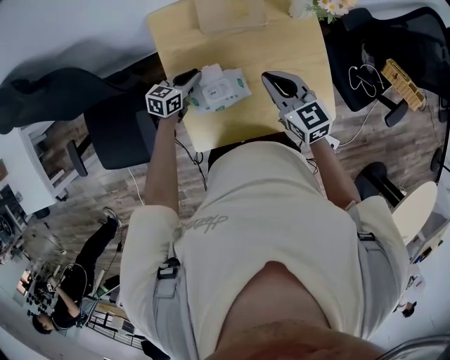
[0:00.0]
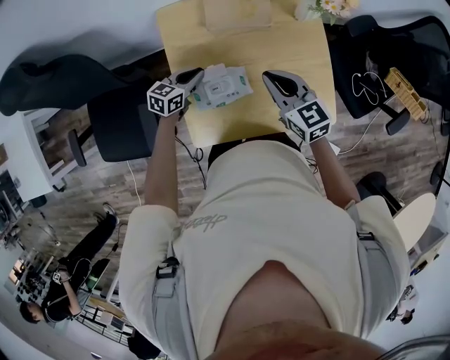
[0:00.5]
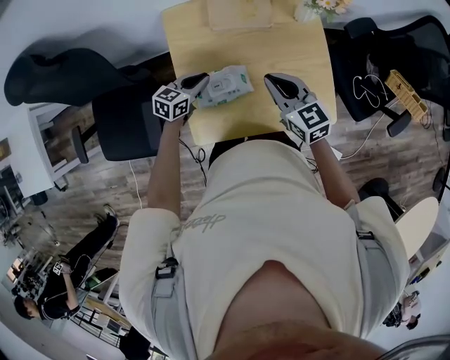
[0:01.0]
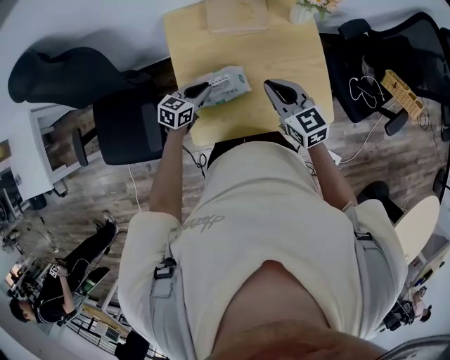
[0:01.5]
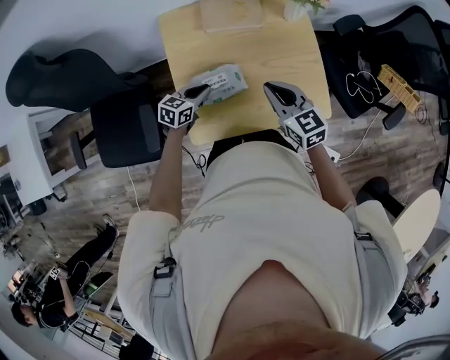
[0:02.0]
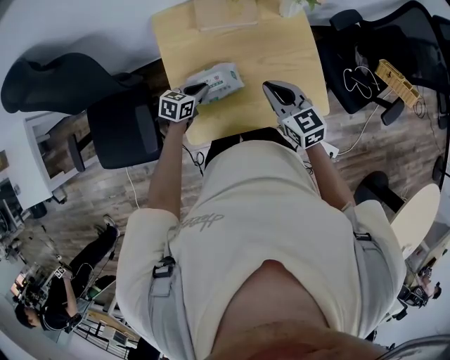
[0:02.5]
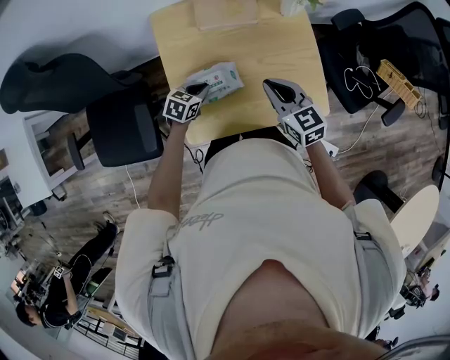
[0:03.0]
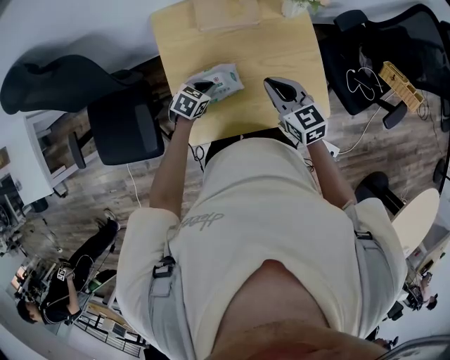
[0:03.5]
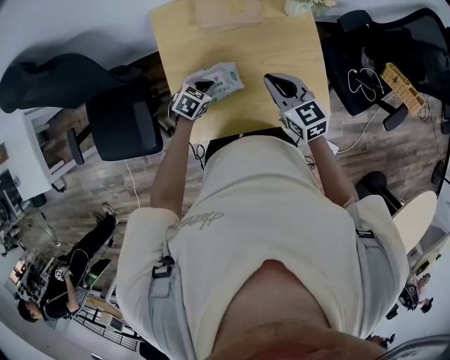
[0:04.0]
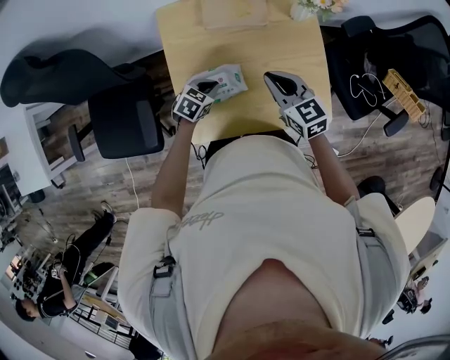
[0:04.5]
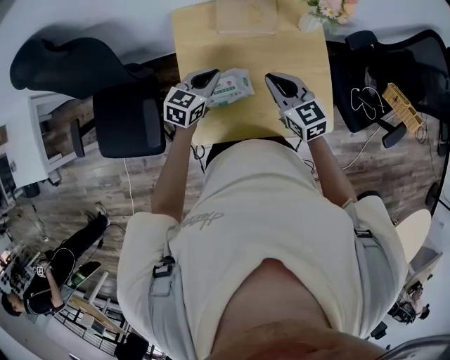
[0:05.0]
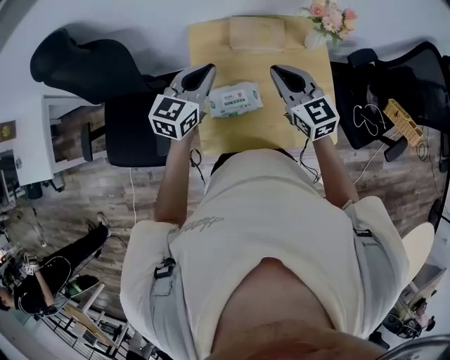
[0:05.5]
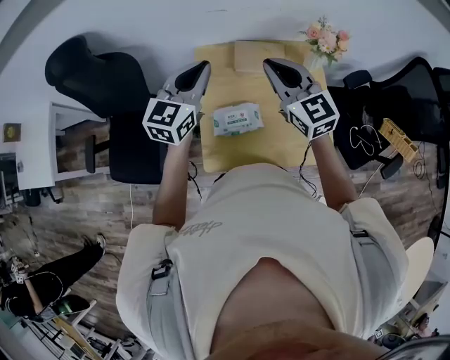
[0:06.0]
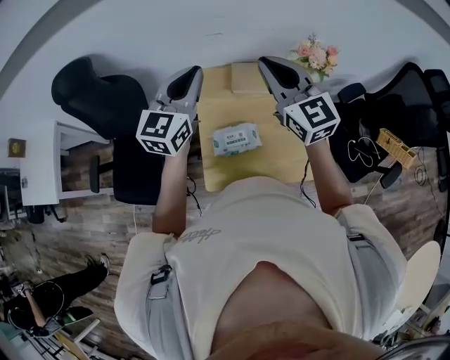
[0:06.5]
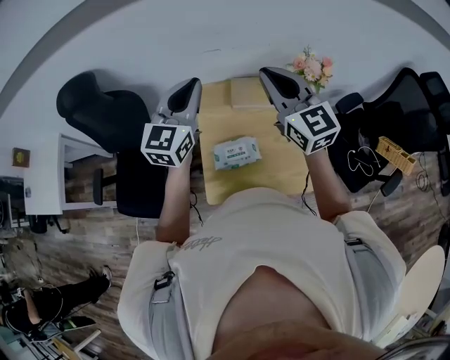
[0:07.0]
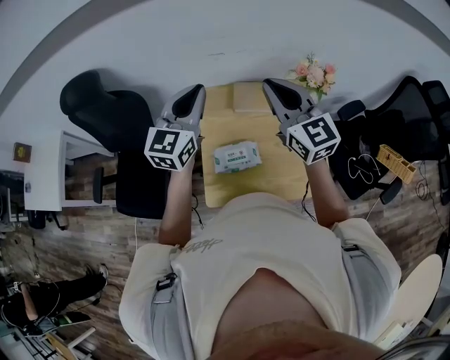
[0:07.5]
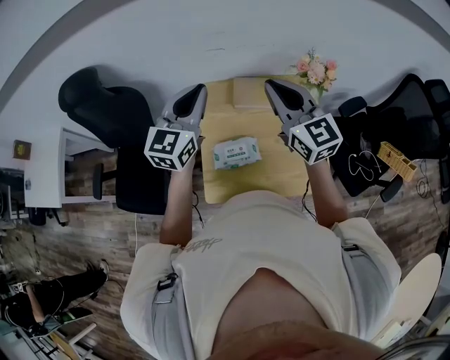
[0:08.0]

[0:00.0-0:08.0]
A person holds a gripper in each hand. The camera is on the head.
0:00.0 to 0:02.0: Both grippers travel together backward, approximately 10 cm.
0:02.0 to 0:04.0: The left gripper ends up about 5 cm from where it was, and rotates about 30 degrees. Meanwhile the right gripper moves some 5 cm.
0:04.0 to 0:06.0: The left gripper goes approximately 40 cm upward, and tilts its fingers about 50 degrees upward; the right gripper heads upward and to the left, covering about 25 cm, and rotates approximately 30 degrees.
0:06.0 to 0:08.0: Both grippers move upward, some 5 cm.

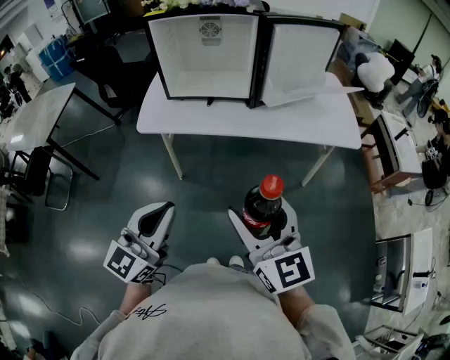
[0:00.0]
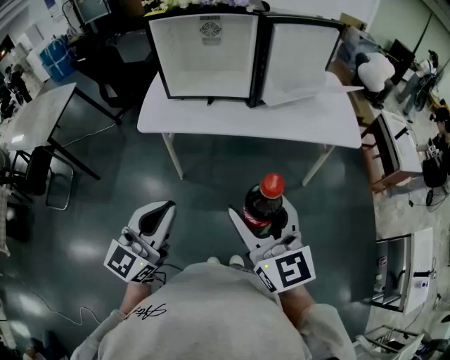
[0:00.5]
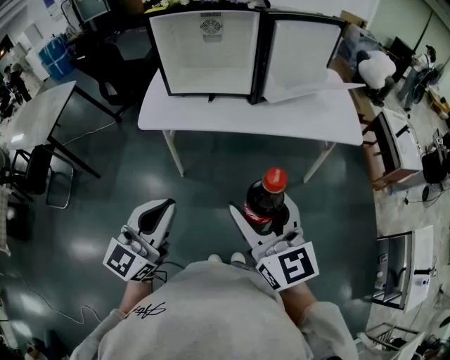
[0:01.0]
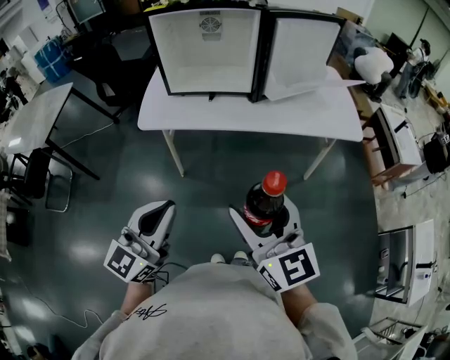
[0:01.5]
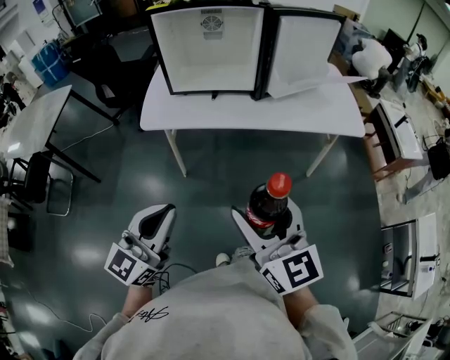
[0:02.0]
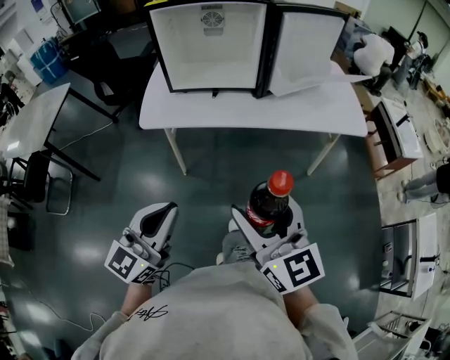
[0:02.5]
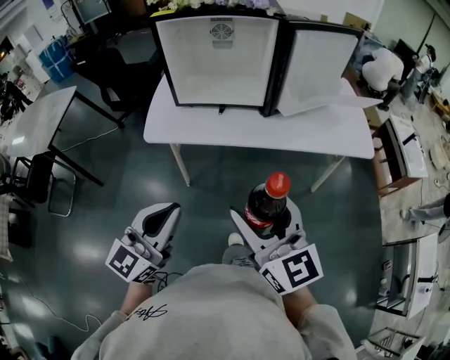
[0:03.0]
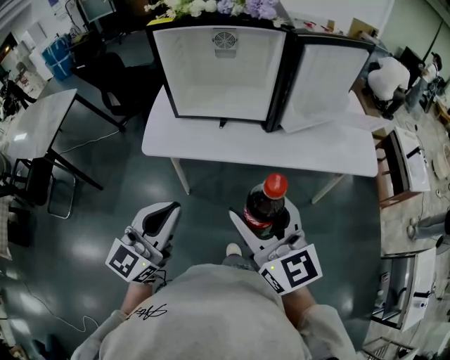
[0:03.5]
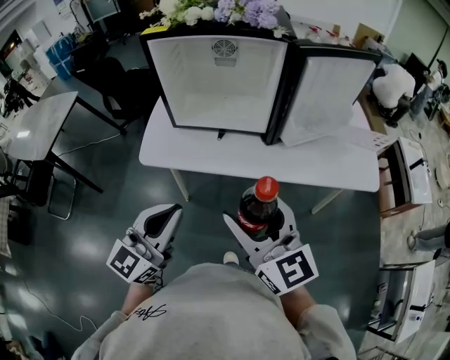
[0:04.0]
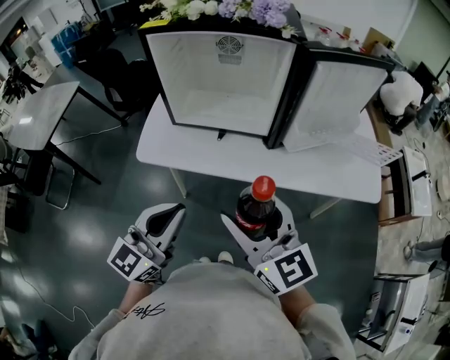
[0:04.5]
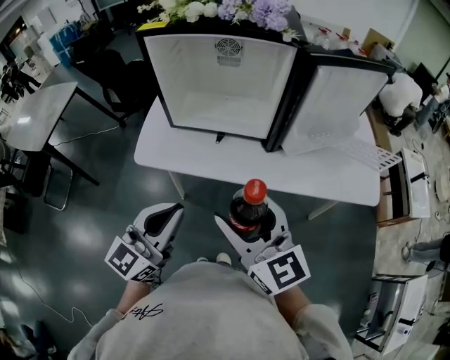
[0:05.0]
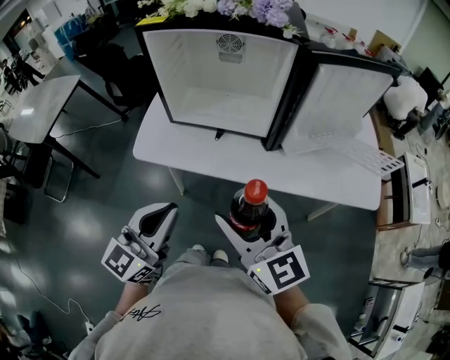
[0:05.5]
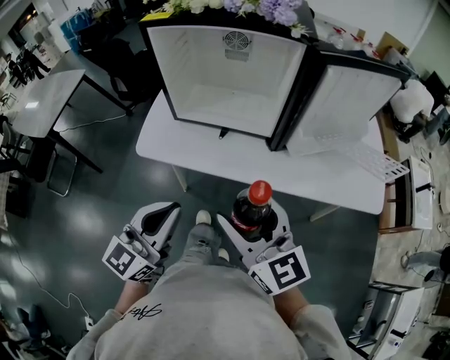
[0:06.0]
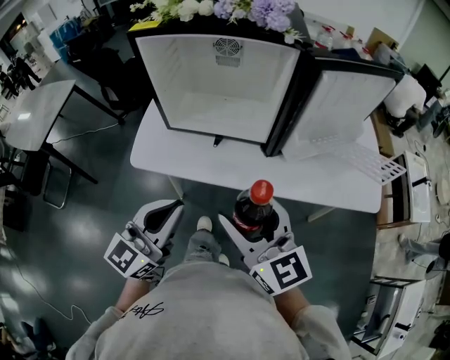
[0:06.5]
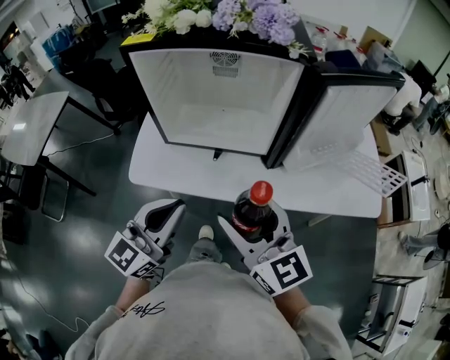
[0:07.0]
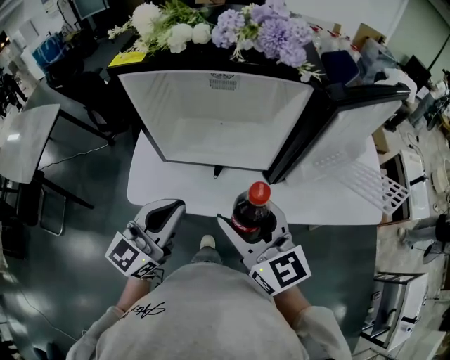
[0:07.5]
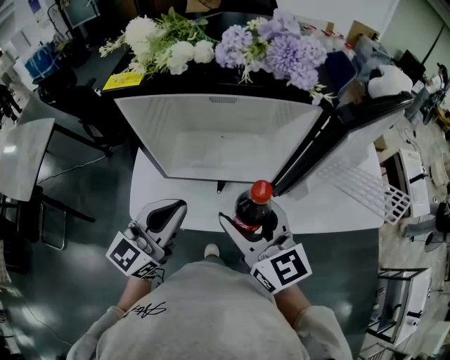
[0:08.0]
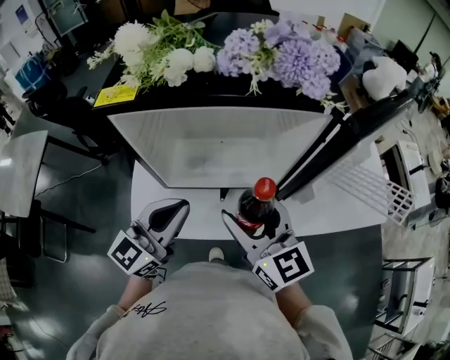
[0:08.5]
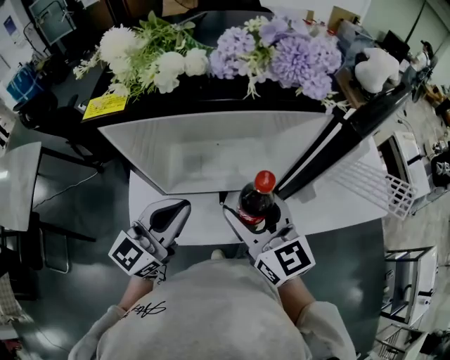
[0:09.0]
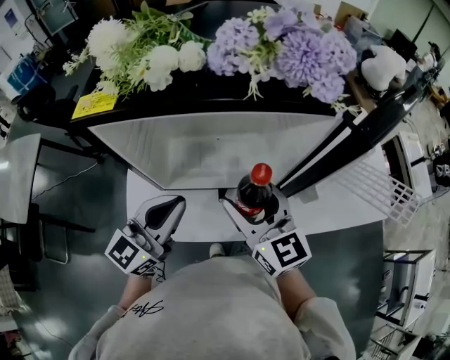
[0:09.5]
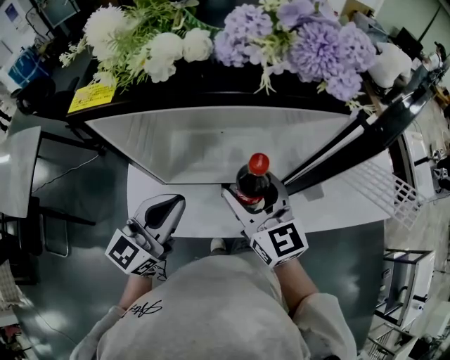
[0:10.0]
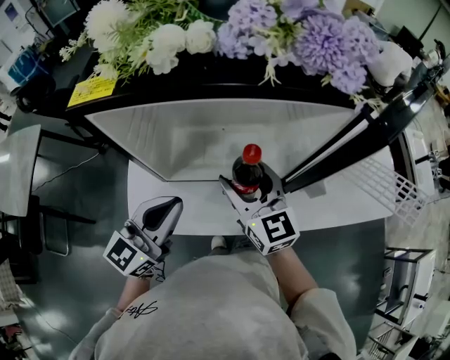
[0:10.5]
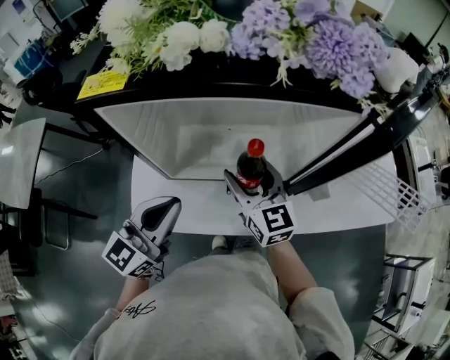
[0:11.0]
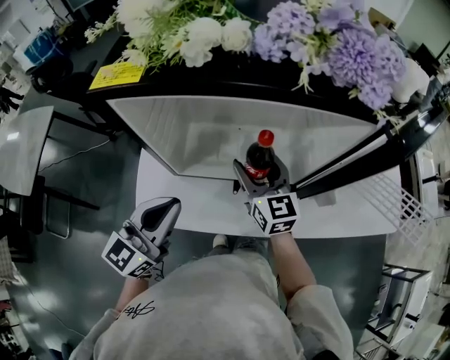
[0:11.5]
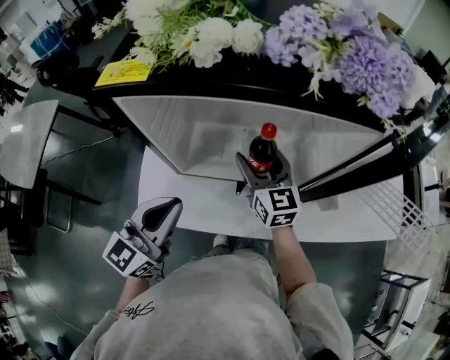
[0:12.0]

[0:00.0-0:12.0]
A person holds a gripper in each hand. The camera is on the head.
0:00.0 to 0:02.0: The left gripper shifts by some 5 cm.
0:02.0 to 0:04.0: The grippers both shift forward by approximately 20 cm.
0:04.0 to 0:06.0: The right gripper ends up some 5 cm from where it was.
0:06.0 to 0:08.0: Both grippers travel together forward, roughly 20 cm.
0:08.0 to 0:10.0: The right gripper goes roughly 10 cm forward and downward; the left gripper moves forward, approximately 5 cm.
0:10.0 to 0:12.0: The right gripper shifts approximately 10 cm forward and downward.

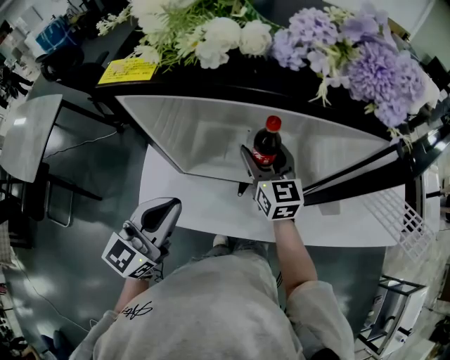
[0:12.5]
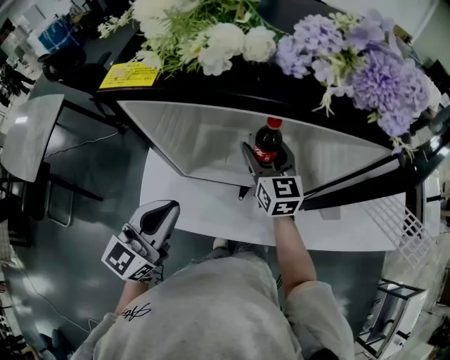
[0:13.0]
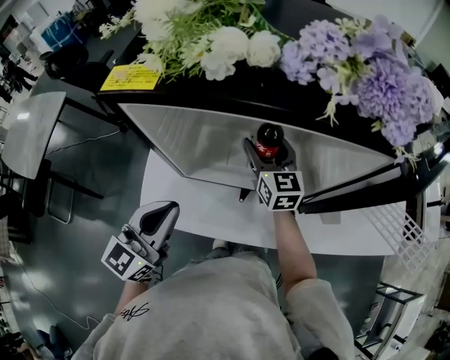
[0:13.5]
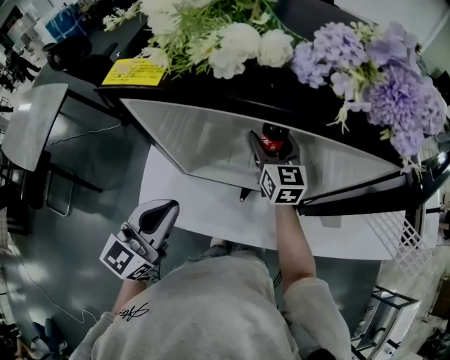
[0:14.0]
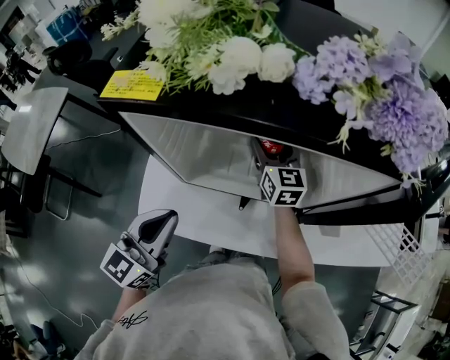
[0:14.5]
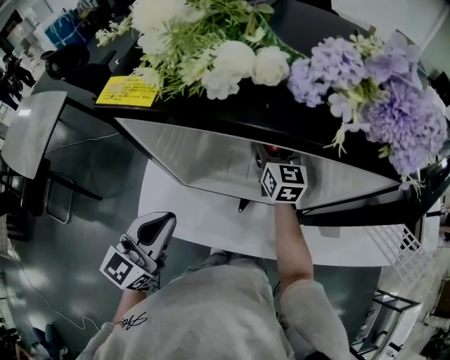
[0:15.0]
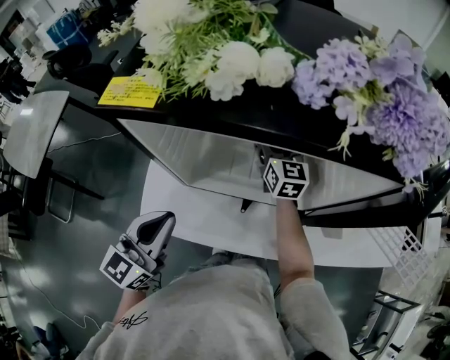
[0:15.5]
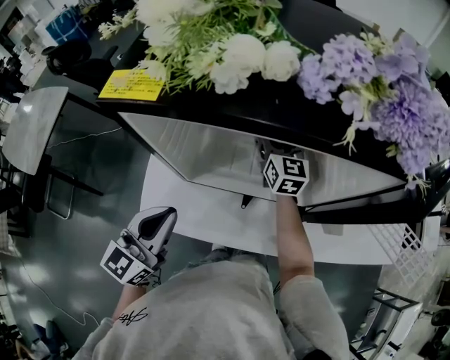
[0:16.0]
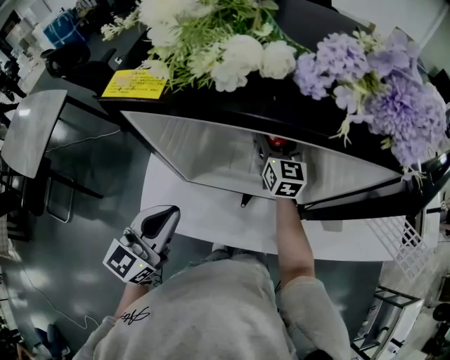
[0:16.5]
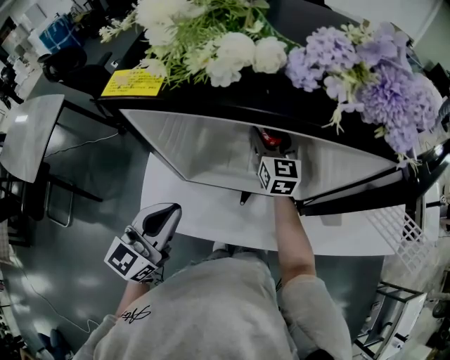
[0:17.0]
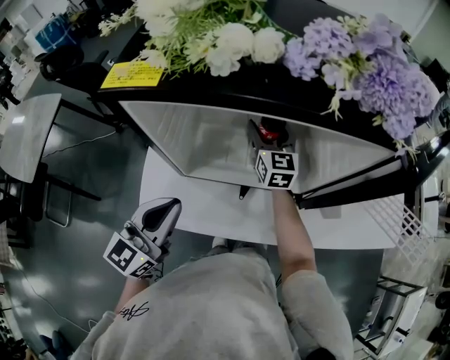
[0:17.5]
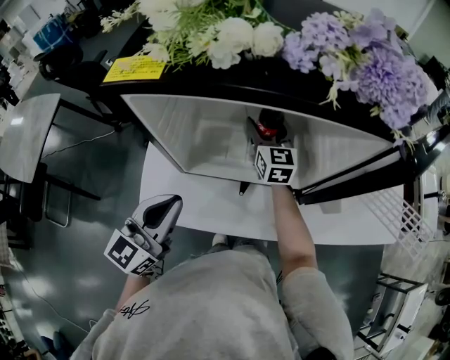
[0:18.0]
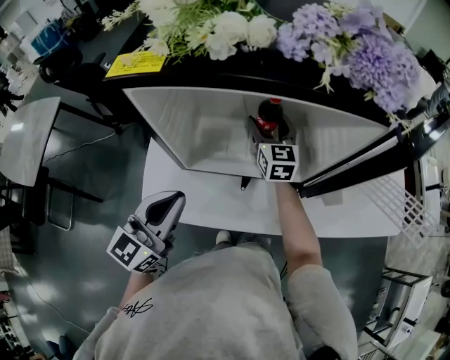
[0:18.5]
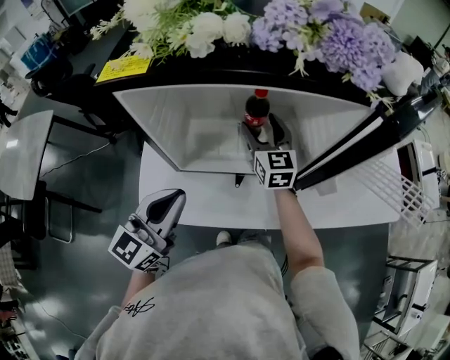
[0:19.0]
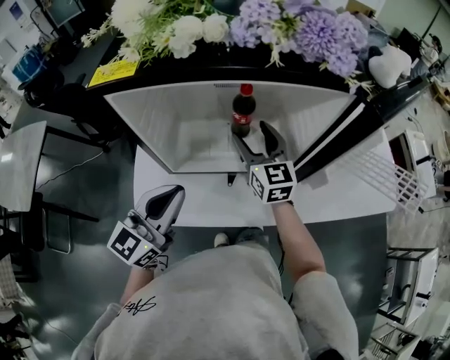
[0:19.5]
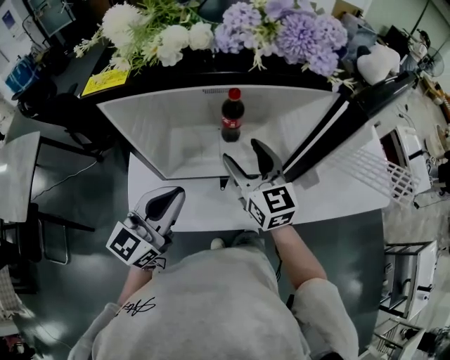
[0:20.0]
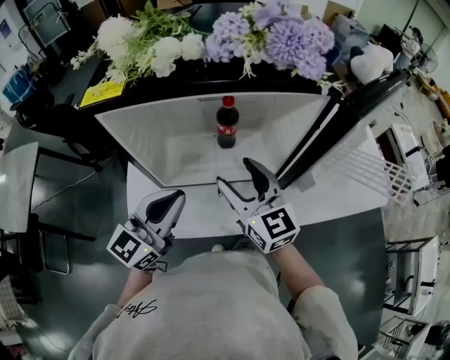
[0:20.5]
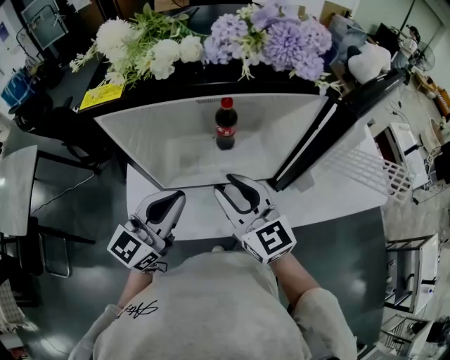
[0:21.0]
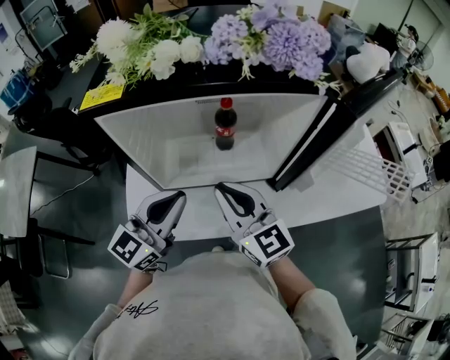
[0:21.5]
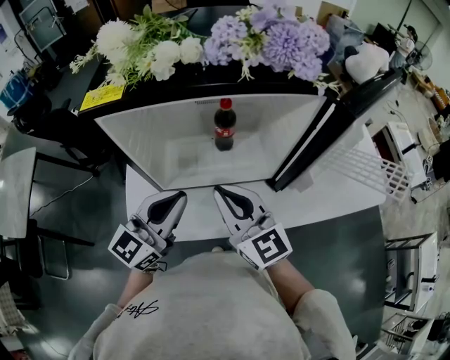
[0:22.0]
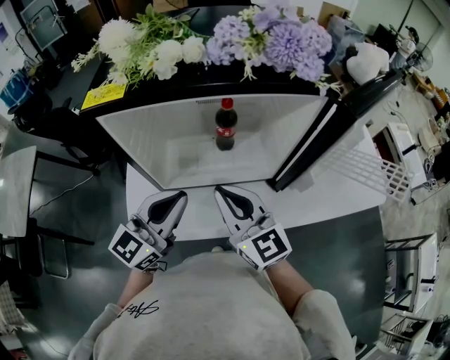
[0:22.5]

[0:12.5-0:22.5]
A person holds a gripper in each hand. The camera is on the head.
0:12.5 to 0:14.5: The right gripper shifts approximately 10 cm forward.
0:14.5 to 0:18.5: There are only small adjustments of the grippers.
0:18.5 to 0:20.5: The left gripper shifts approximately 5 cm to the right. Meanwhile the right gripper shifts approximately 20 cm backward and upward.
0:20.5 to 0:22.5: The right gripper shifts by some 5 cm, and closes up.
